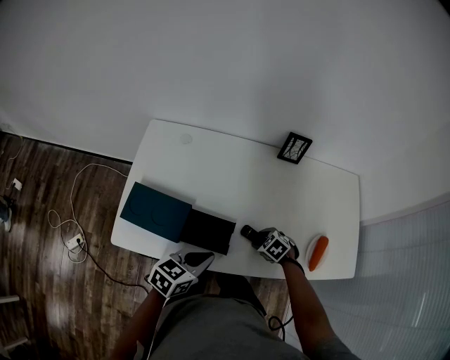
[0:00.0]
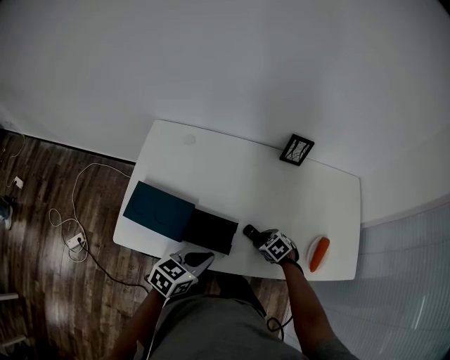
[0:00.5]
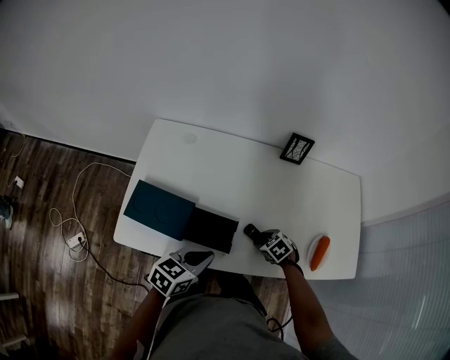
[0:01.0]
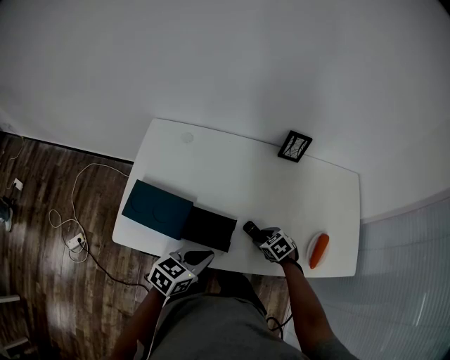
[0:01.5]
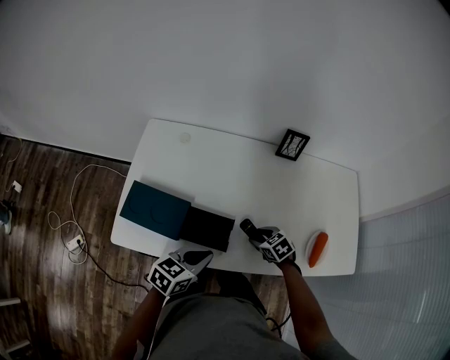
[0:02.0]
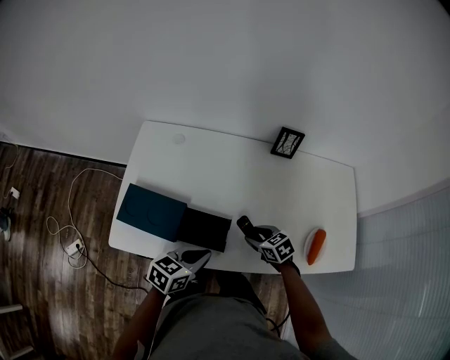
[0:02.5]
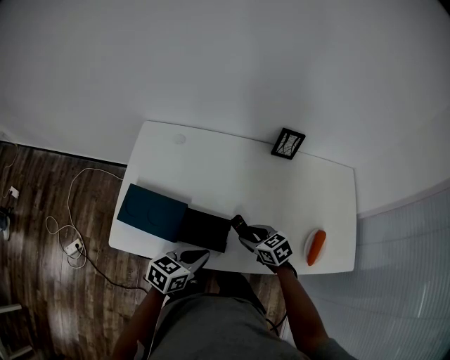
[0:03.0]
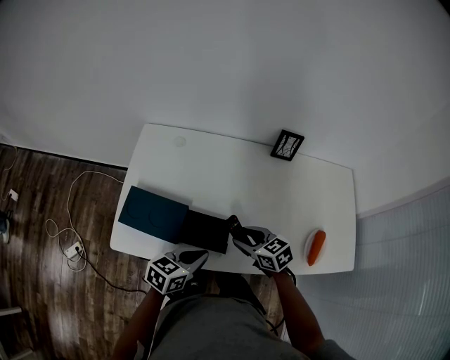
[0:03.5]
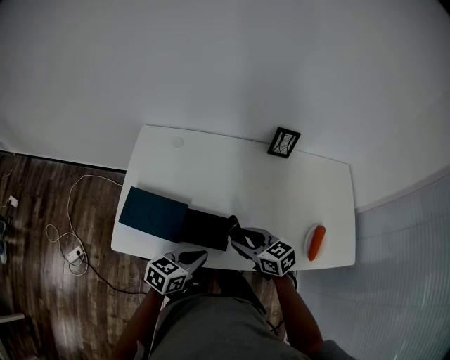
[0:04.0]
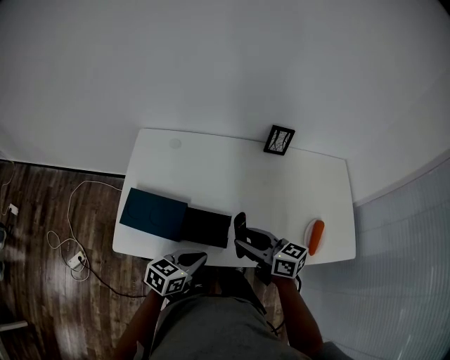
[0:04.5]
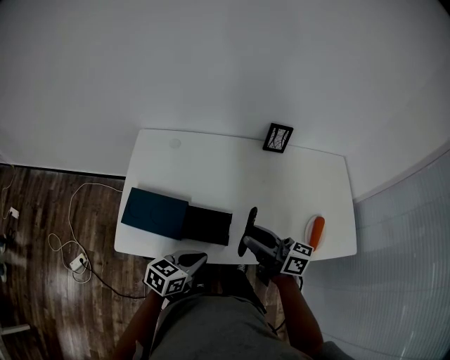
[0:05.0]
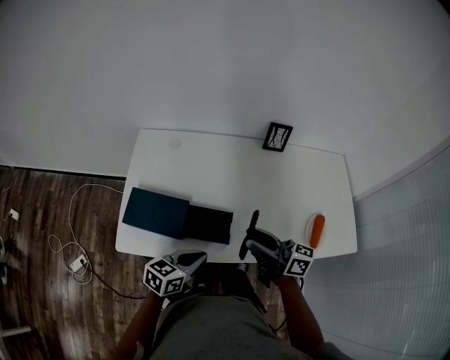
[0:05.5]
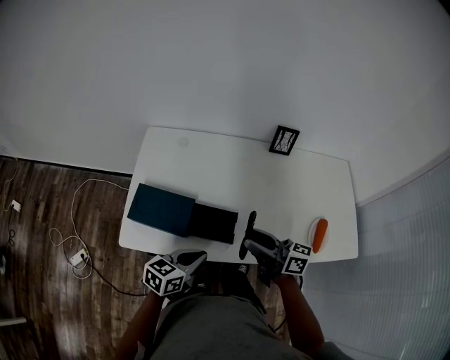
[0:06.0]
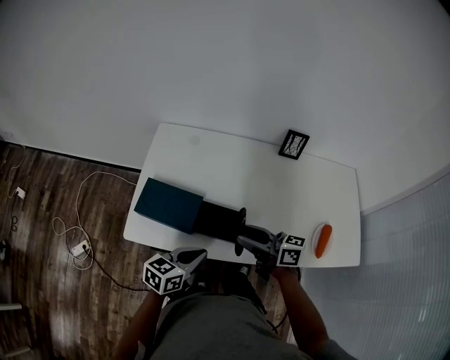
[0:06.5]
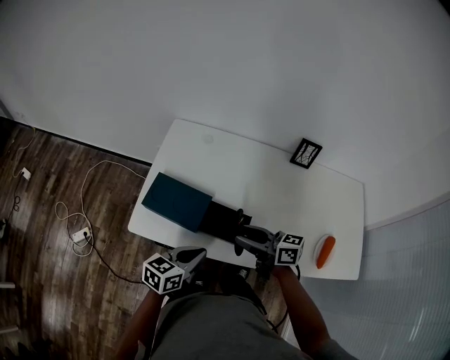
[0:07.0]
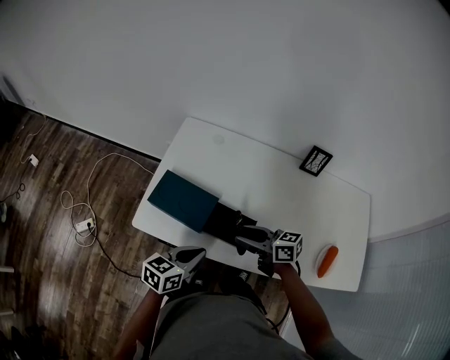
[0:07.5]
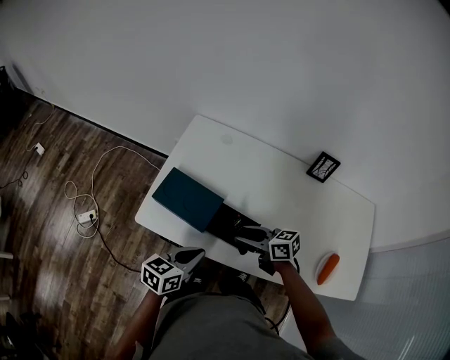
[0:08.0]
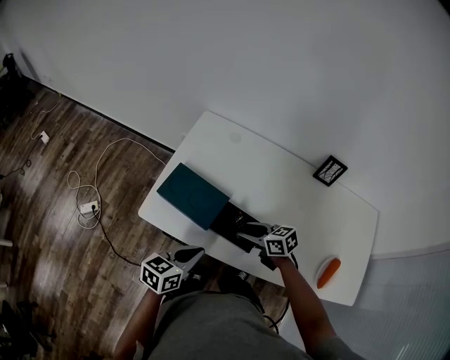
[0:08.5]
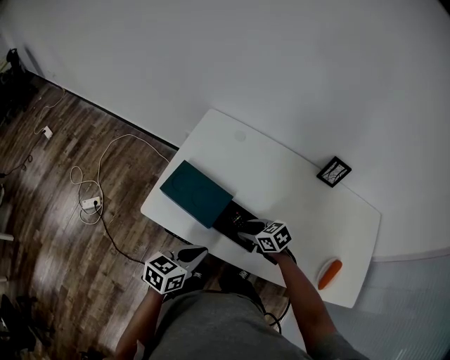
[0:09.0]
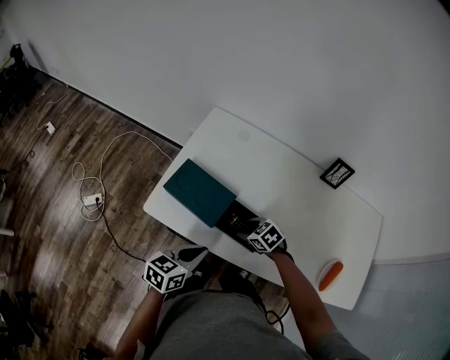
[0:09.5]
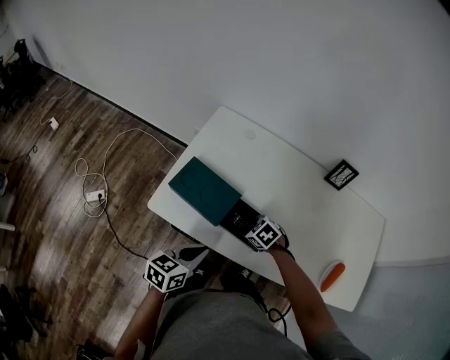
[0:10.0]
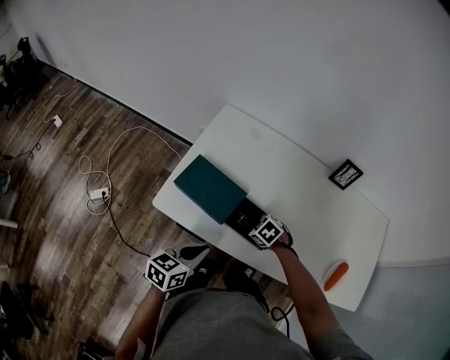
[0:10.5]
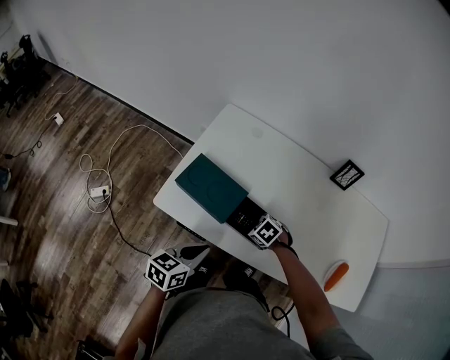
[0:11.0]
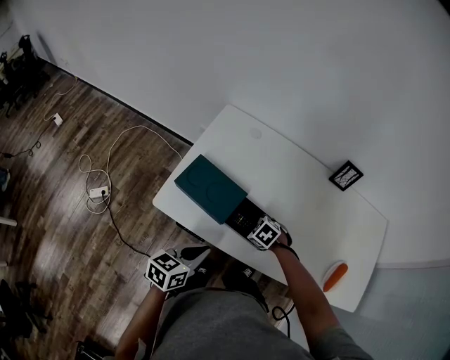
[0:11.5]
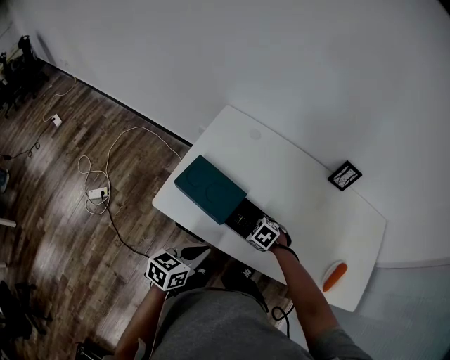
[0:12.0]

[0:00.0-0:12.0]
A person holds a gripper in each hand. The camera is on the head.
0:00.0 to 0:02.0: There are only small adjustments of the grippers.
0:02.0 to 0:04.0: The right gripper is displaced upward and to the left by about 15 cm, and changes its angle by some 30 degrees.
0:04.0 to 0:06.0: The right gripper travels upward by approximately 10 cm, and angles its fingers upward, by some 30 degrees.
0:06.0 to 0:08.0: The right gripper is displaced downward, to the left and forward by roughly 15 cm, and turns by approximately 40 degrees. The left gripper moves to the left, about 5 cm.
0:08.0 to 0:10.0: The right gripper heads downward, covering some 15 cm, and points its fingers approximately 40 degrees further downward.
0:10.0 to 0:12.0: The grippers stay close to where they were, moving slightly.

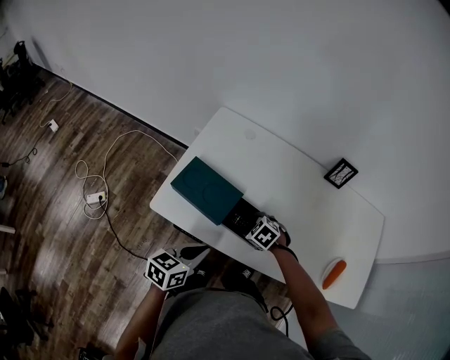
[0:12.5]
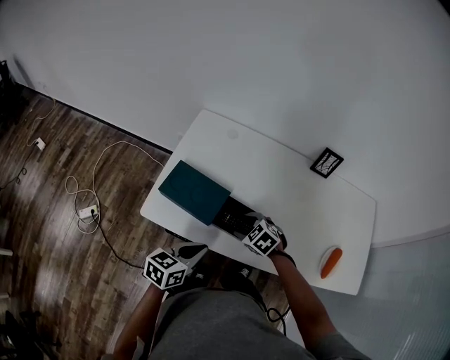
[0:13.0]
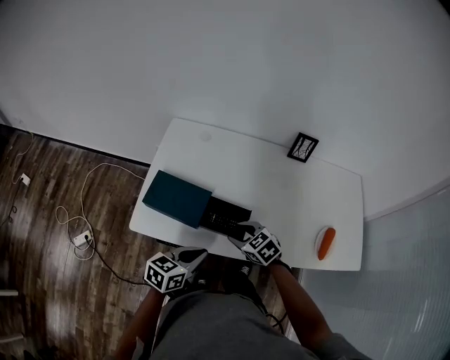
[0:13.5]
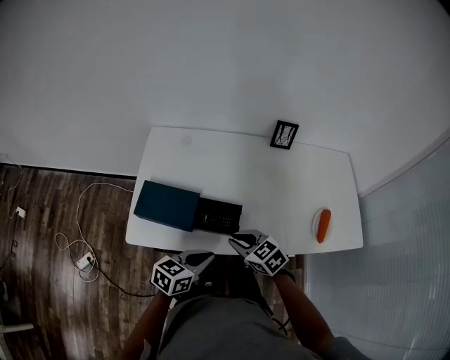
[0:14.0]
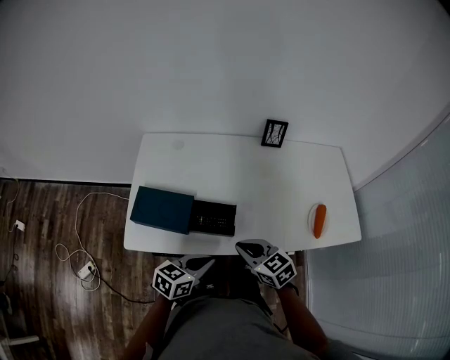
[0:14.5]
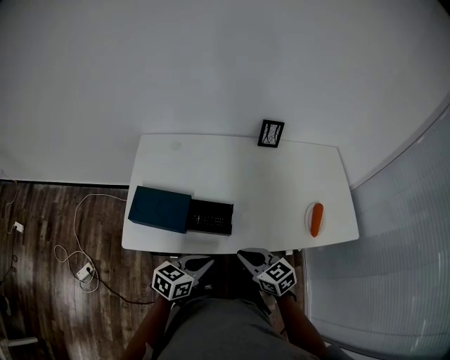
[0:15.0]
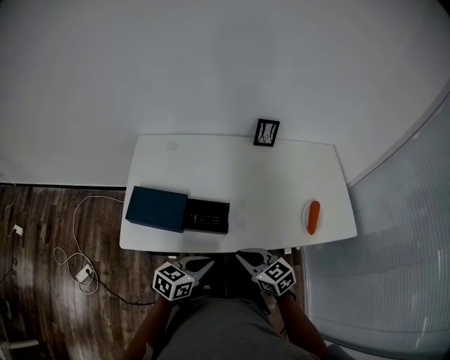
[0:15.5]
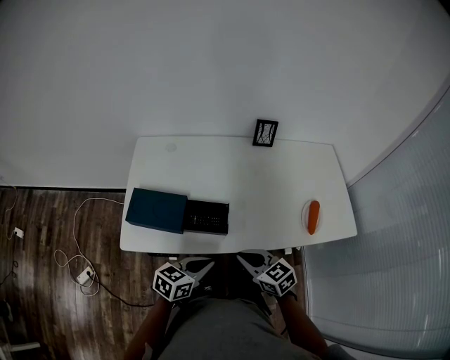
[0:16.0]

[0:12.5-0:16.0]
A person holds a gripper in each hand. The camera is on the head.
0:12.5 to 0:14.5: The right gripper goes some 15 cm upward, tilts its fingers about 40 degrees upward, and closes up. The left gripper changes place by some 10 cm, and turns by approximately 30 degrees.
0:14.5 to 0:16.0: The right gripper ends up roughly 5 cm from where it was.

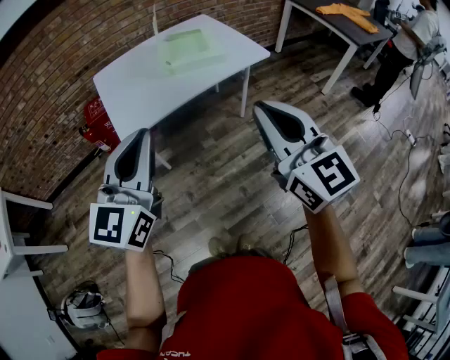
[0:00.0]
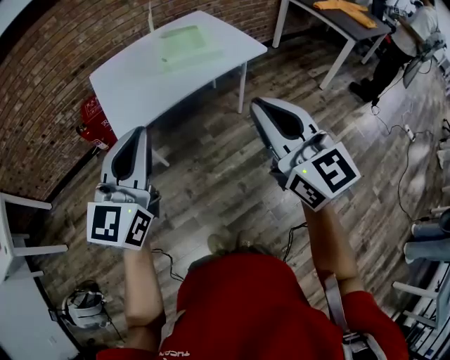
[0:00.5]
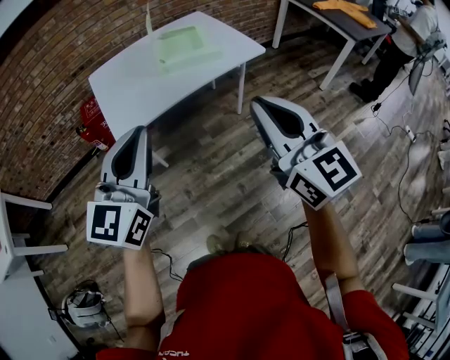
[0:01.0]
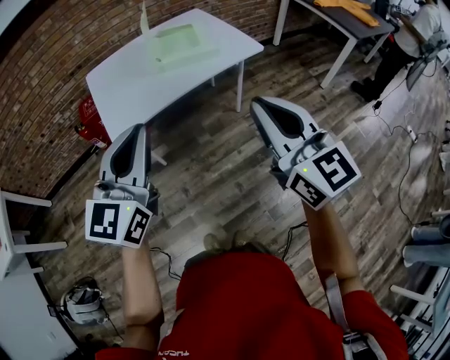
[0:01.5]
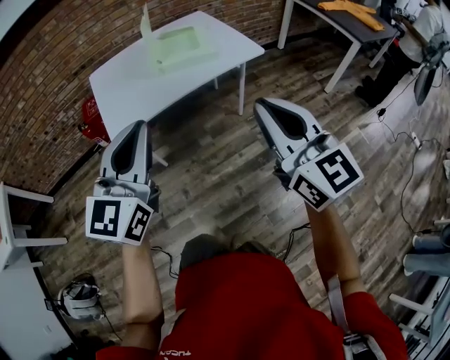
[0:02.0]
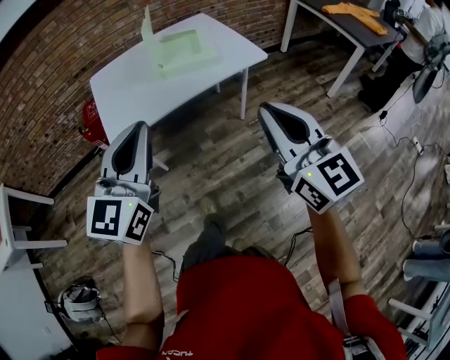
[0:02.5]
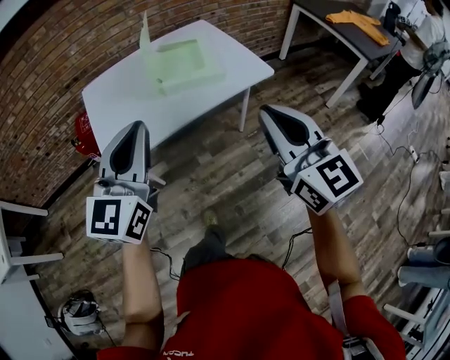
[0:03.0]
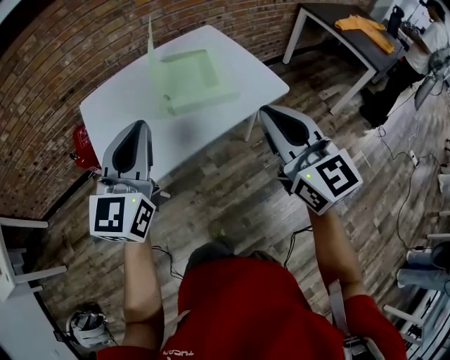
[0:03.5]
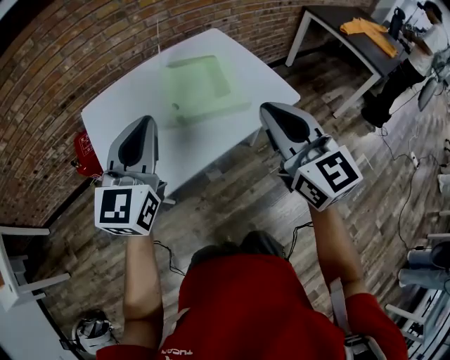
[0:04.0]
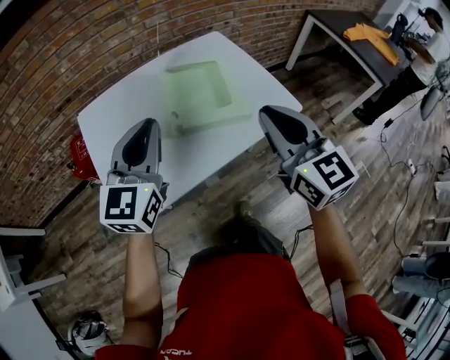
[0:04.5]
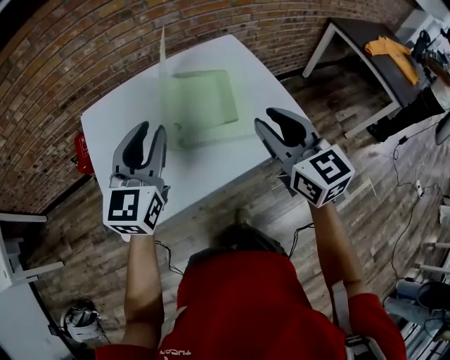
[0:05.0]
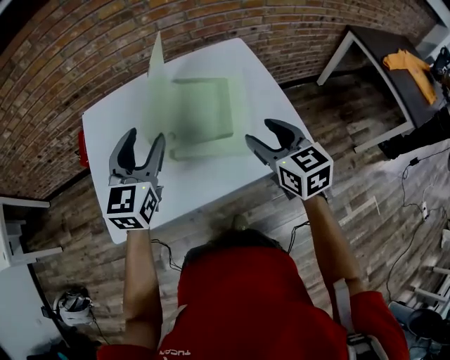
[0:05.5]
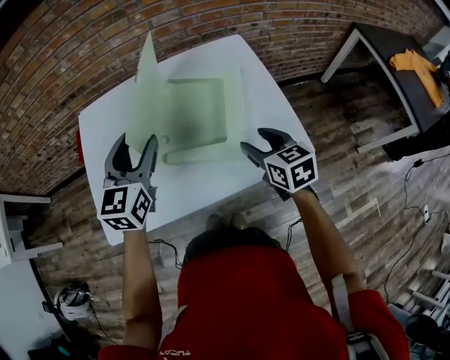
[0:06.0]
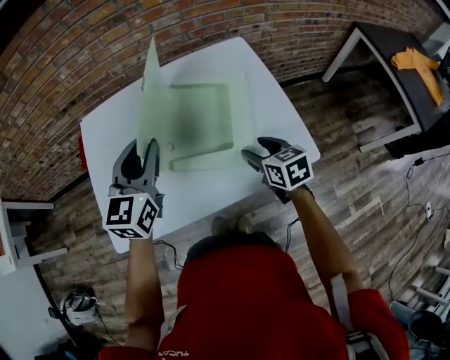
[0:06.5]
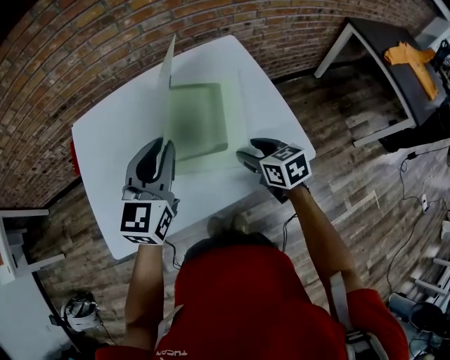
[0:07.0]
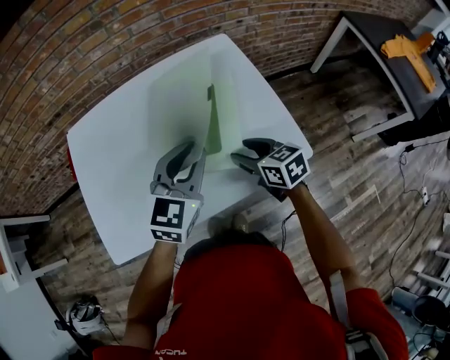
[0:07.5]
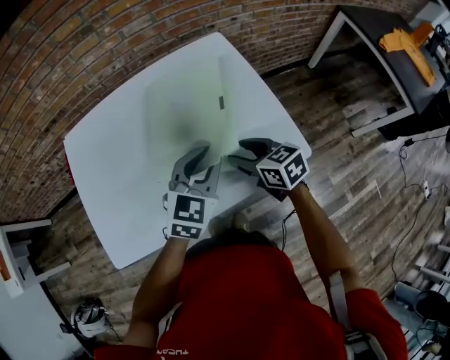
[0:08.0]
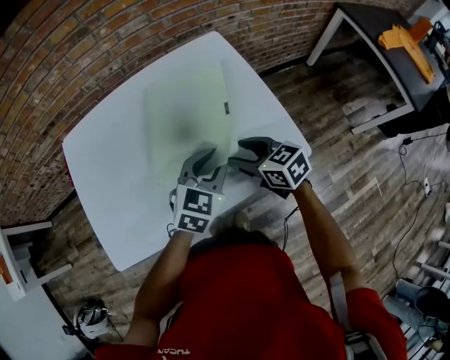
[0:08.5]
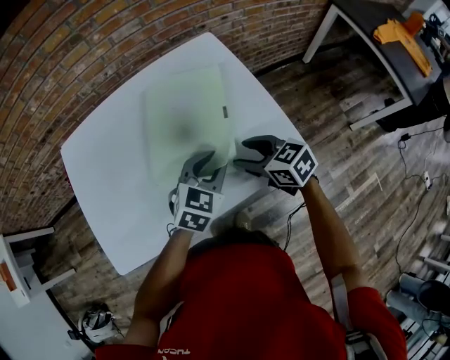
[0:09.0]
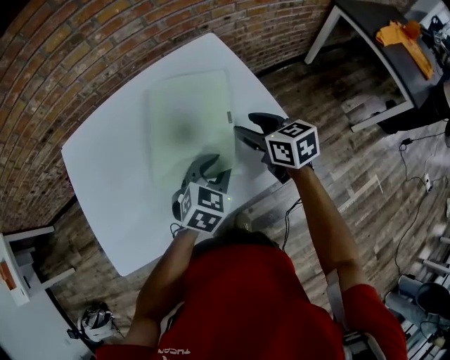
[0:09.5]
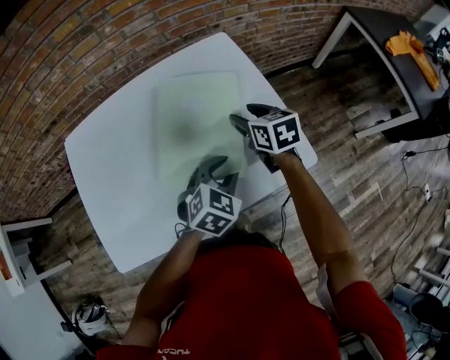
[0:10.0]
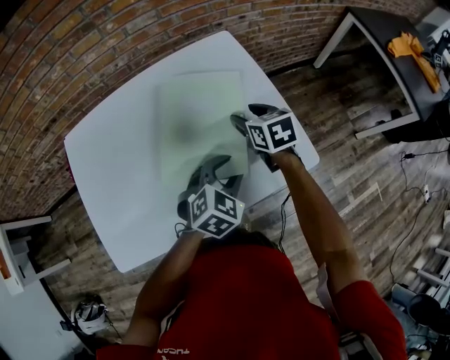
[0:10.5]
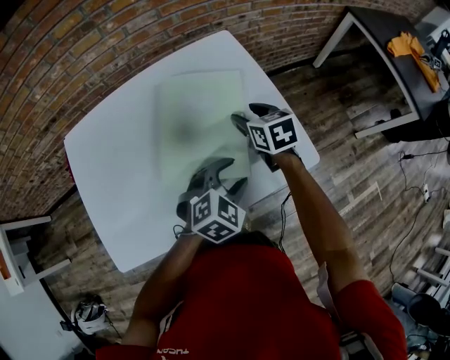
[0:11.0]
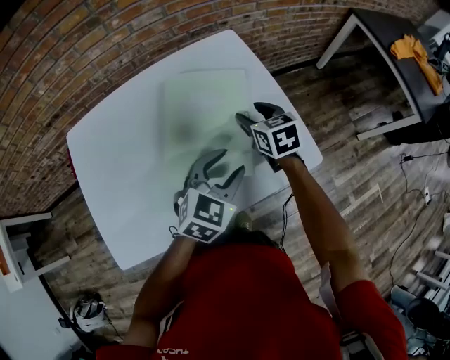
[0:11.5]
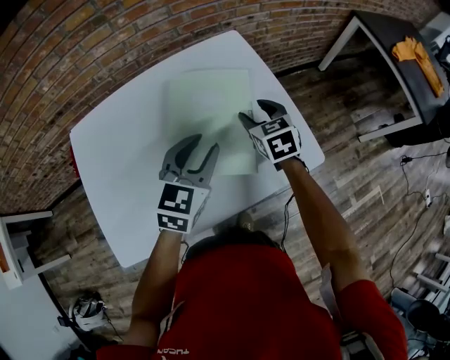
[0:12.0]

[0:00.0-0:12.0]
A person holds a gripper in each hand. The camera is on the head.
0:00.0 to 0:02.0: The two grippers go approximately 5 cm to the right.
0:02.0 to 0:04.0: The grippers both shift forward by approximately 35 cm.
0:04.0 to 0:06.0: The right gripper is displaced downward, forward and to the right by approximately 35 cm, angles its fingers downward, by roughly 30 degrees, and opens its fingers. The left gripper heads forward and downward, covering some 20 cm, changes its angle by approximately 20 degrees, and opens up.
0:06.0 to 0:08.0: The left gripper shifts some 20 cm to the right and downward, turns by about 30 degrees, and closes, while the right gripper moves some 5 cm.
0:08.0 to 0:10.0: The right gripper heads forward, covering some 10 cm; the left gripper travels downward by roughly 5 cm, and changes its angle by approximately 20 degrees.
0:10.0 to 0:12.0: The left gripper shifts approximately 10 cm upward and to the left, and swivels roughly 20 degrees.
